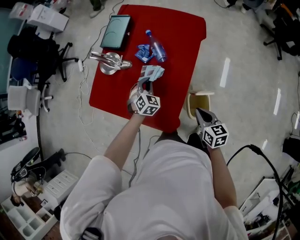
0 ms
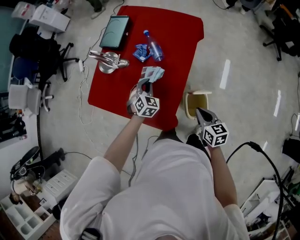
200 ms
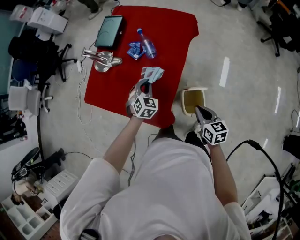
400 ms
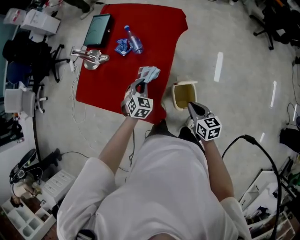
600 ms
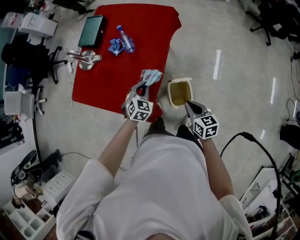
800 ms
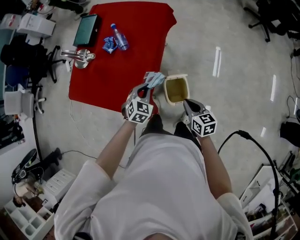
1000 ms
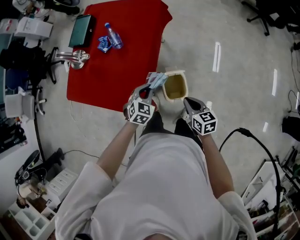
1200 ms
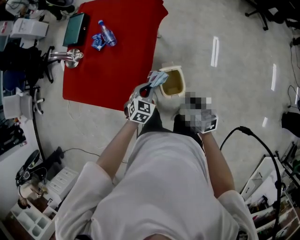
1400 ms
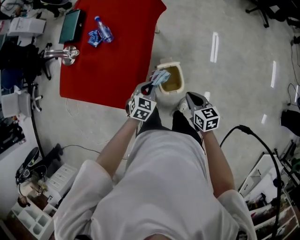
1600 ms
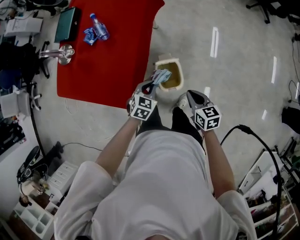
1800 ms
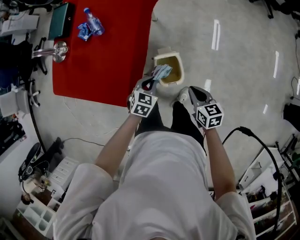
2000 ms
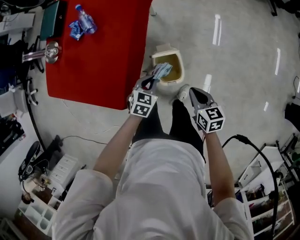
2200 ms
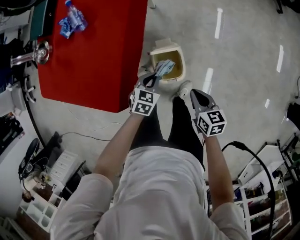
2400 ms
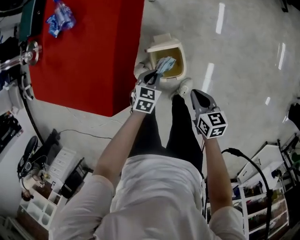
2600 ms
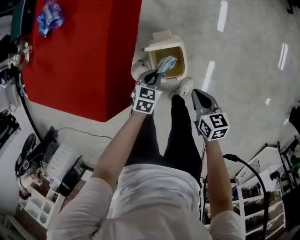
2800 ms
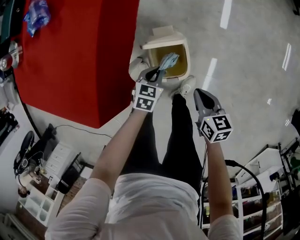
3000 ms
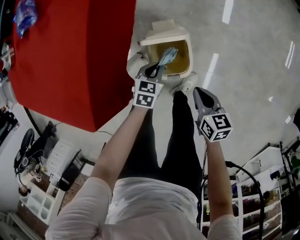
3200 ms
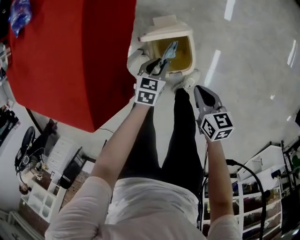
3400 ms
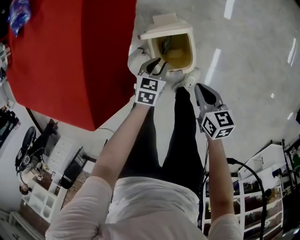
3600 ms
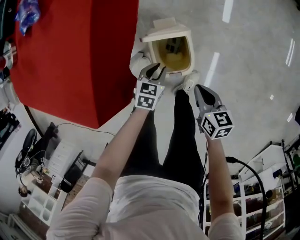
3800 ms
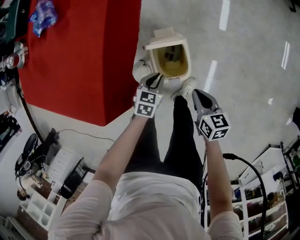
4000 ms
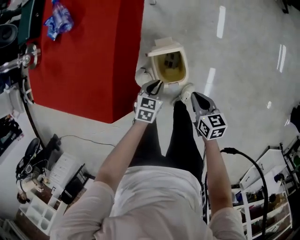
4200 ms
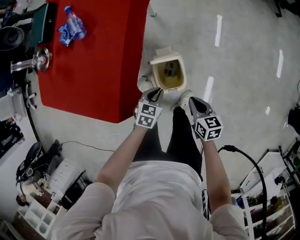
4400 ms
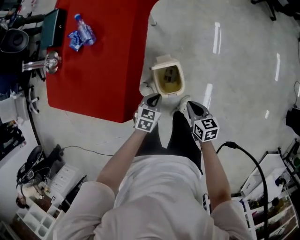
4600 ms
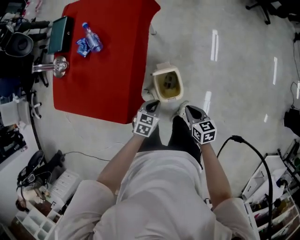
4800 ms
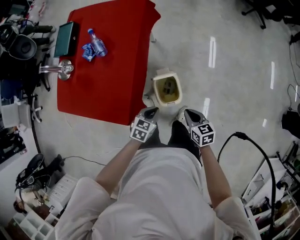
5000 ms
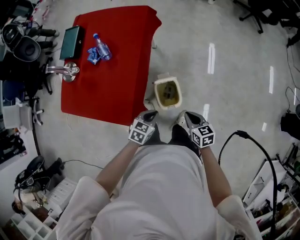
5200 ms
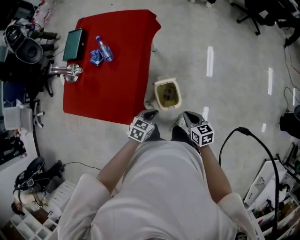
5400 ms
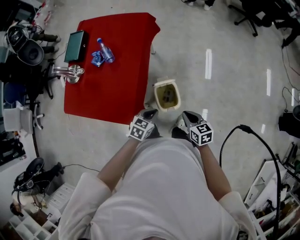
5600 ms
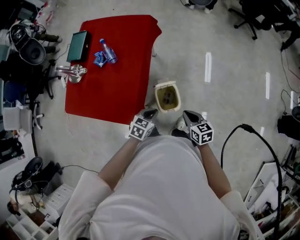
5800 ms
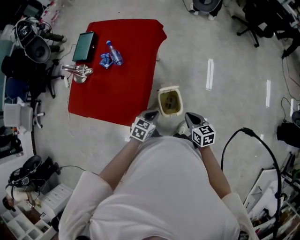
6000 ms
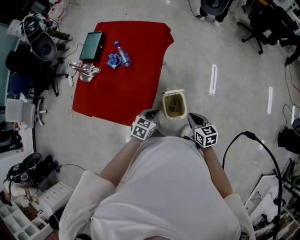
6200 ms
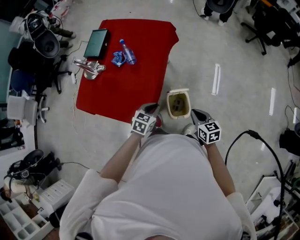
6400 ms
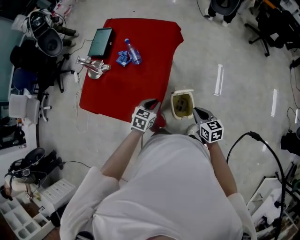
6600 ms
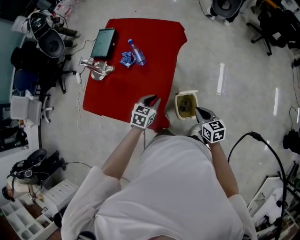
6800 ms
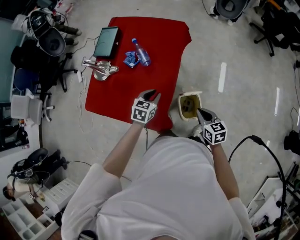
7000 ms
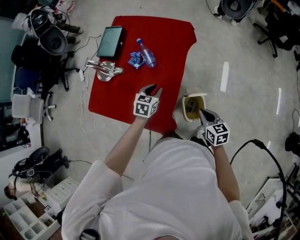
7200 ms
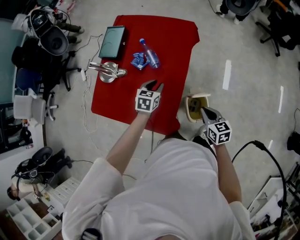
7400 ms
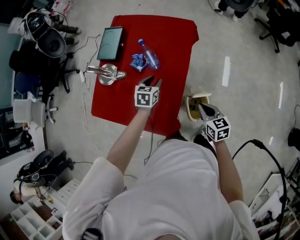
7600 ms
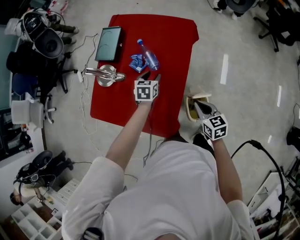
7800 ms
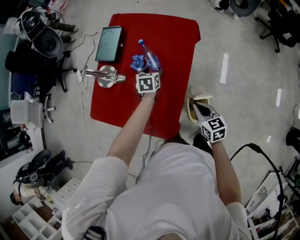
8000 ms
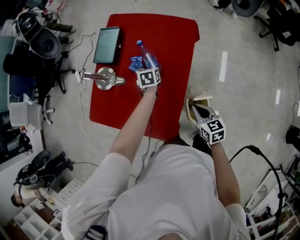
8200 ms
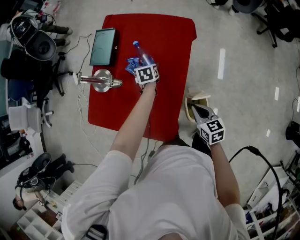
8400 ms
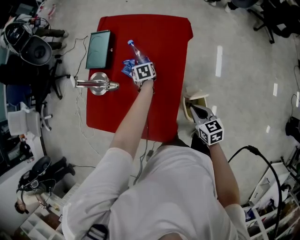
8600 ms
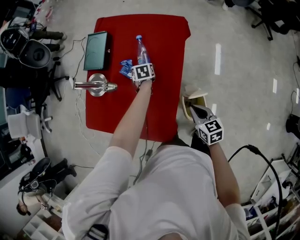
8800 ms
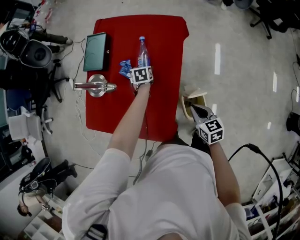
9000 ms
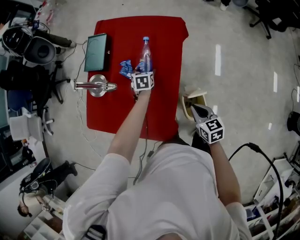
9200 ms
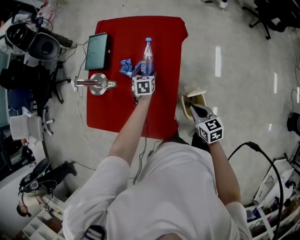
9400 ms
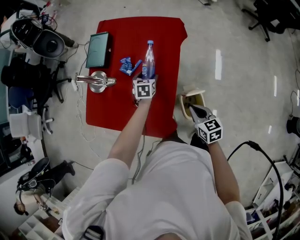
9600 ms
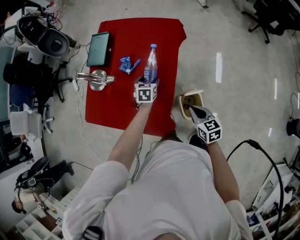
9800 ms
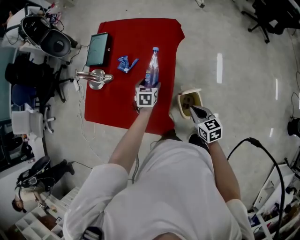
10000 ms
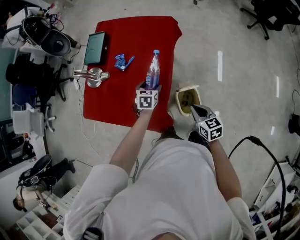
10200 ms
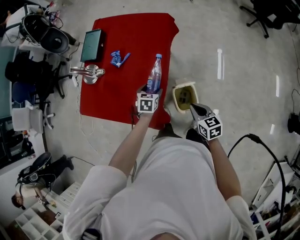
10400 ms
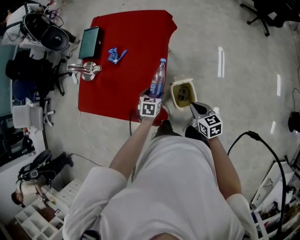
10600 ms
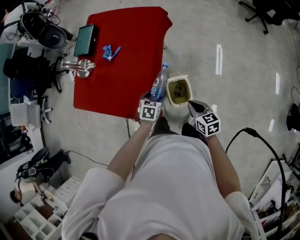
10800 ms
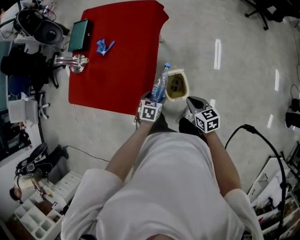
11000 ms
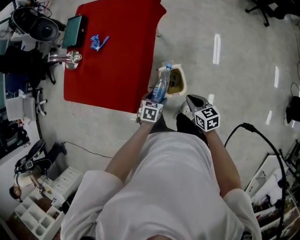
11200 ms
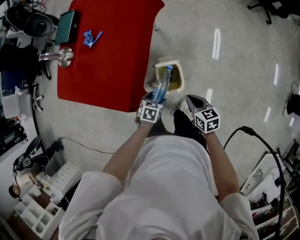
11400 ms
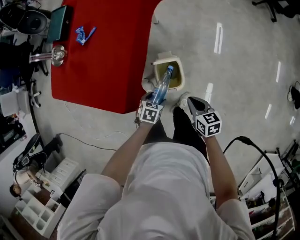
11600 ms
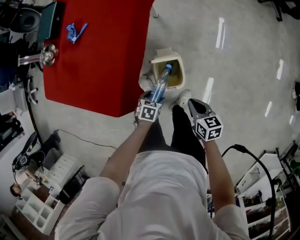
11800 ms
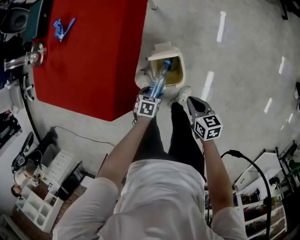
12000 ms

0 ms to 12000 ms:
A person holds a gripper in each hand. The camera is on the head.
0 ms to 1600 ms: Both grippers travel together to the right and backward, some 25 cm. The left gripper swivels about 30 degrees.
1600 ms to 3000 ms: Both grippers move downward, about 25 cm. The left gripper rotates about 20 degrees.
3000 ms to 4400 ms: The right gripper heads upward, covering some 10 cm, while the left gripper is displaced upward by some 15 cm.
4400 ms to 6000 ms: Both grippers move upward, some 20 cm.
6000 ms to 7600 ms: The left gripper heads forward and to the left, covering some 35 cm, swivels some 20 degrees, and opens up. Meanwhile the right gripper goes some 20 cm to the left and forward.
7600 ms to 9000 ms: The left gripper travels forward and downward by approximately 15 cm, and opens its fingers.
9000 ms to 10400 ms: The left gripper travels backward and to the right by about 25 cm. Meanwhile the right gripper moves backward and to the right, roughly 15 cm.
10400 ms to 12000 ms: The right gripper moves downward and to the right, roughly 25 cm. The left gripper moves downward, backward and to the right, roughly 35 cm, and turns by some 30 degrees.

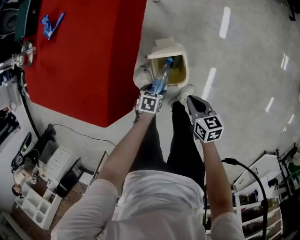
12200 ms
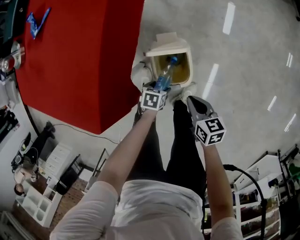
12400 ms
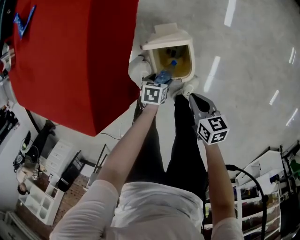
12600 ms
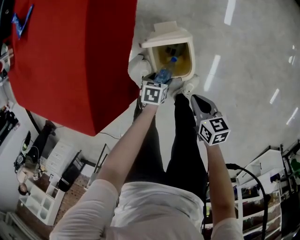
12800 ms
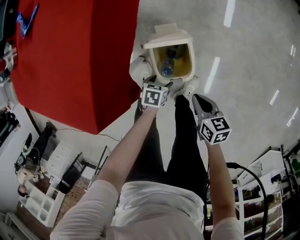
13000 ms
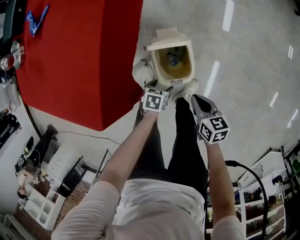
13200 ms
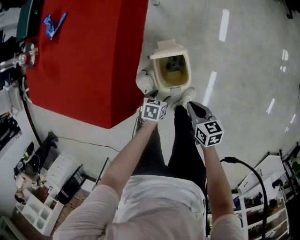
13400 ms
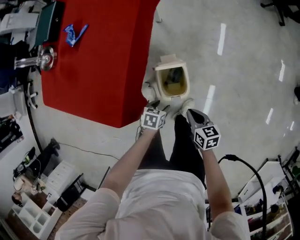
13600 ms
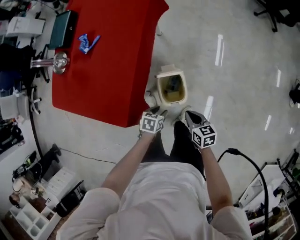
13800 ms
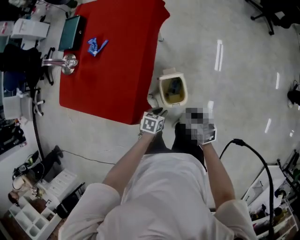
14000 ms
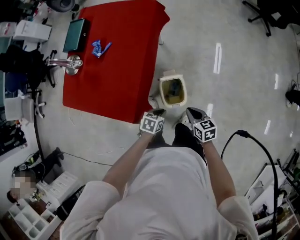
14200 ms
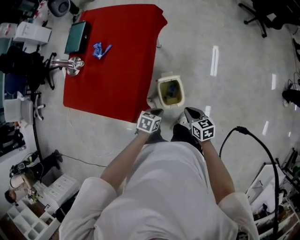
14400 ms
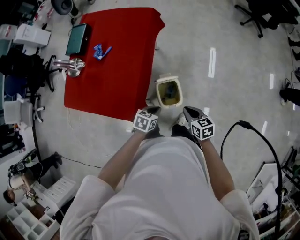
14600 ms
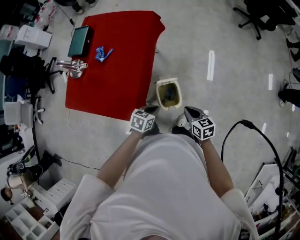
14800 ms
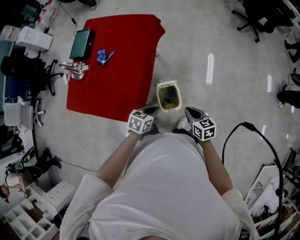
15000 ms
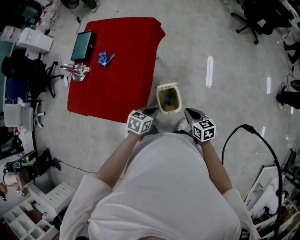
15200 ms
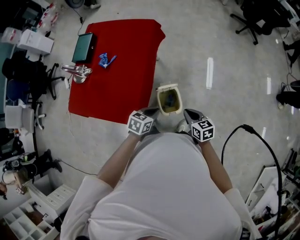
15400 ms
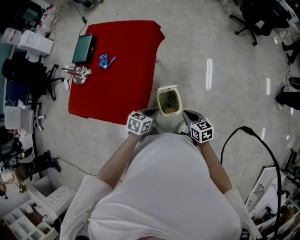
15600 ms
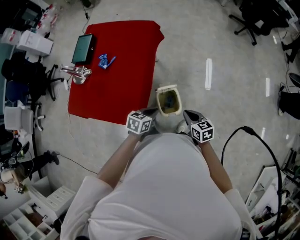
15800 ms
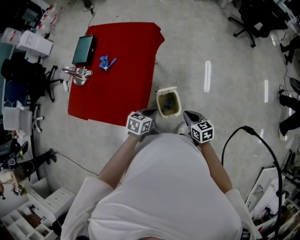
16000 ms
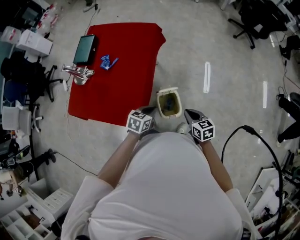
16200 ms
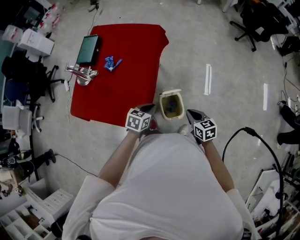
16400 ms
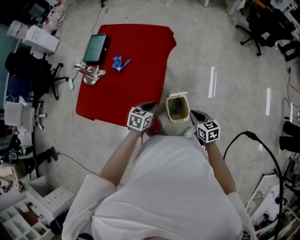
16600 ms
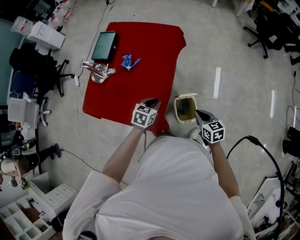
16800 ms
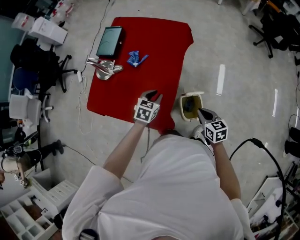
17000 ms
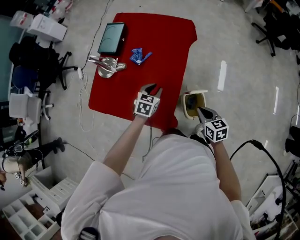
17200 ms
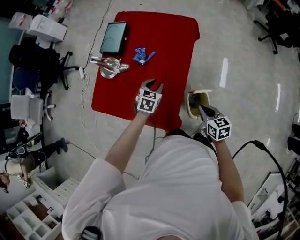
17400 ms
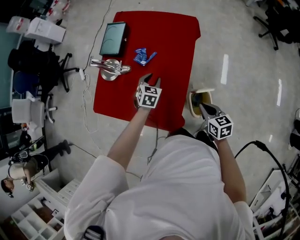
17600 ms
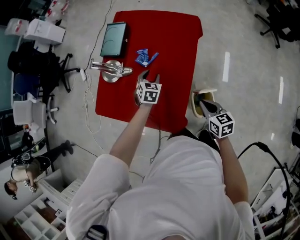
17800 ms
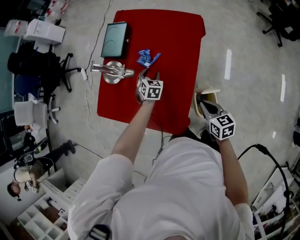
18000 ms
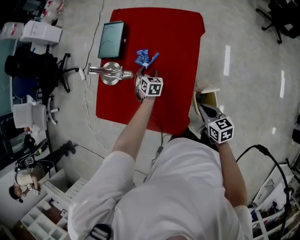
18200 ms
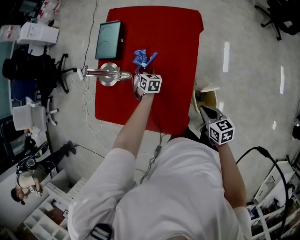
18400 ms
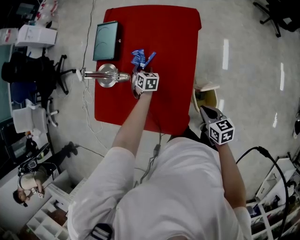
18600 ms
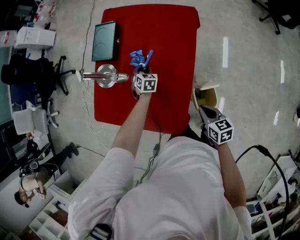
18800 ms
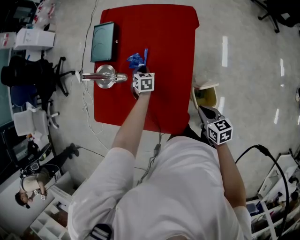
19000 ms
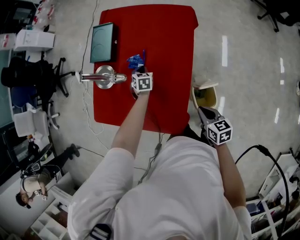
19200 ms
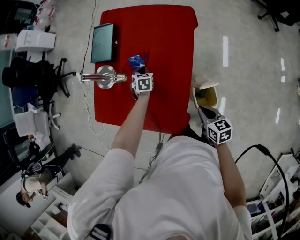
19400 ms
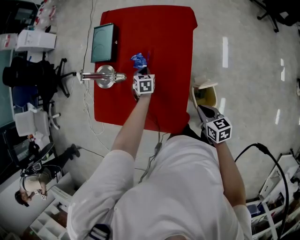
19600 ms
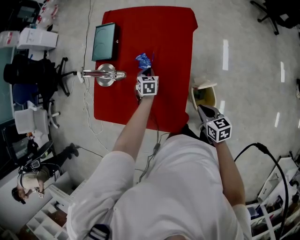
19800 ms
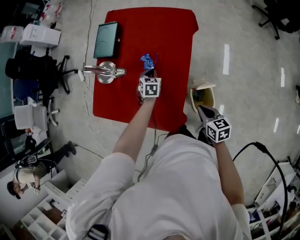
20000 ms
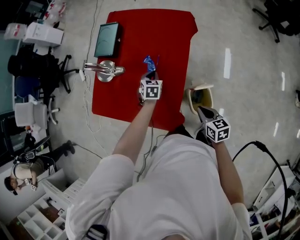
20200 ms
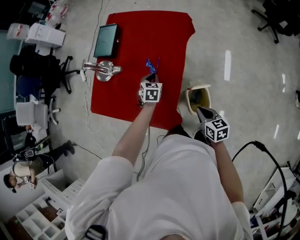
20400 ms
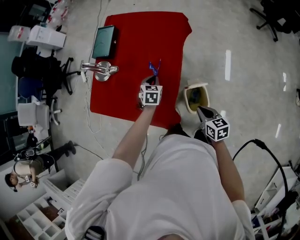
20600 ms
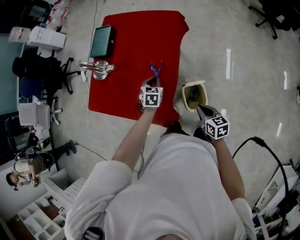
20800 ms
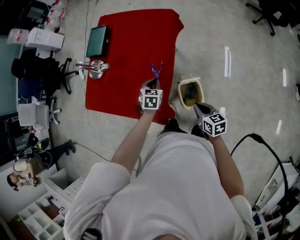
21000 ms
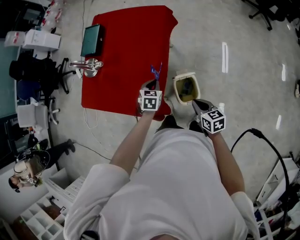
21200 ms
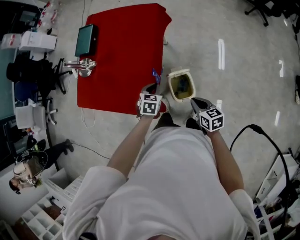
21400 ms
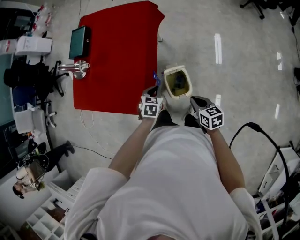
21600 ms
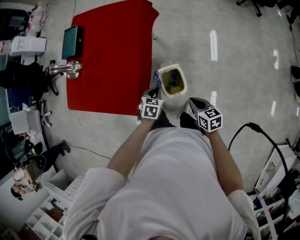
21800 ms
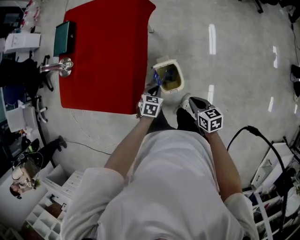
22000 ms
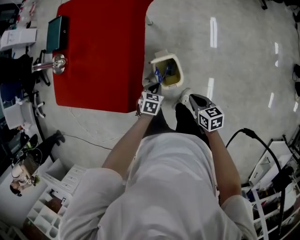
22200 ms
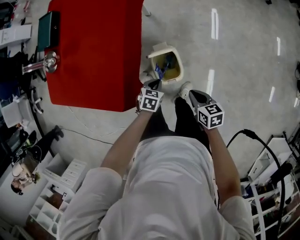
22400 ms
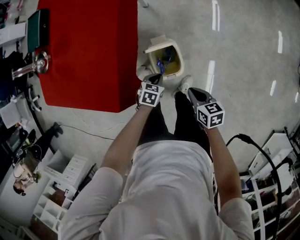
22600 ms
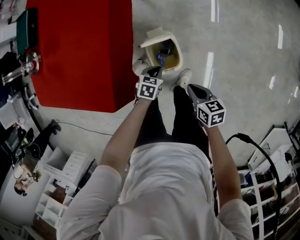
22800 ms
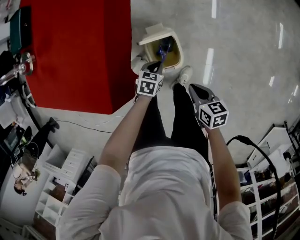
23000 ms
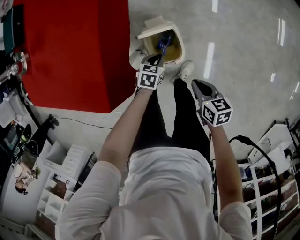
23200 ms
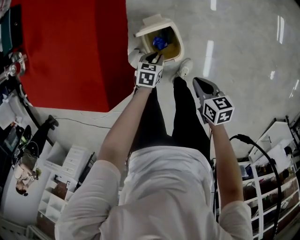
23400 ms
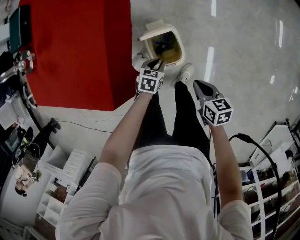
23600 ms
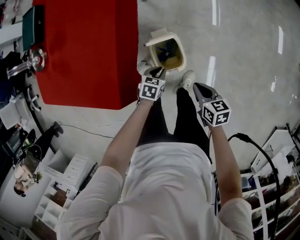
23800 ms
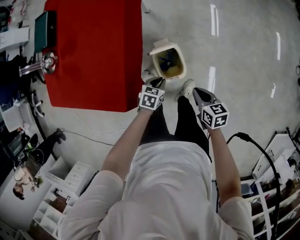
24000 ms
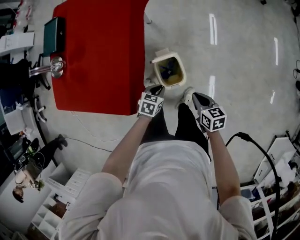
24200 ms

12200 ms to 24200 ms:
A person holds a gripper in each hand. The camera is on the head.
12200 ms to 13800 ms: The right gripper heads upward, covering some 10 cm, while the left gripper travels upward by about 15 cm, and closes its fingers.
13800 ms to 15200 ms: The two grippers go roughly 20 cm upward. The left gripper turns by some 20 degrees, and closes up.
15200 ms to 16600 ms: The left gripper heads to the left, covering roughly 10 cm, while the right gripper goes roughly 5 cm to the left.
16600 ms to 18200 ms: The left gripper moves approximately 35 cm, turns by about 30 degrees, and opens its fingers. Meanwhile the right gripper changes place by about 20 cm.
18200 ms to 19800 ms: The left gripper closes.
19800 ms to 21200 ms: The left gripper heads backward and to the right, covering about 25 cm; the right gripper moves to the right and backward, roughly 15 cm.
21200 ms to 22600 ms: The right gripper travels downward and to the right by some 20 cm. Meanwhile the left gripper goes roughly 30 cm downward, to the right and backward, and rotates some 20 degrees.
22600 ms to 24200 ms: The left gripper goes roughly 5 cm upward.
